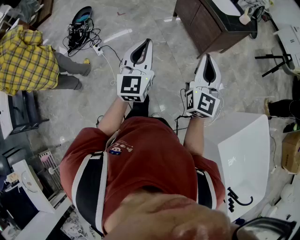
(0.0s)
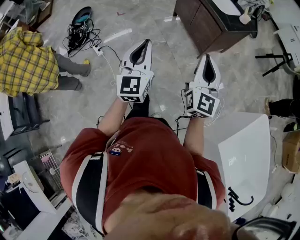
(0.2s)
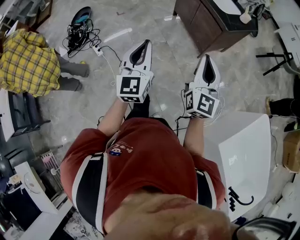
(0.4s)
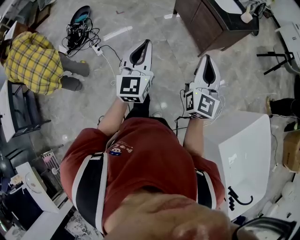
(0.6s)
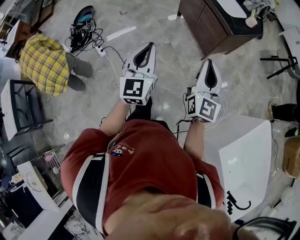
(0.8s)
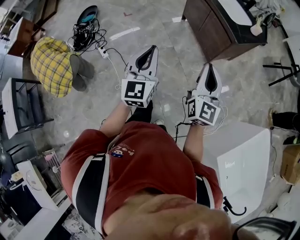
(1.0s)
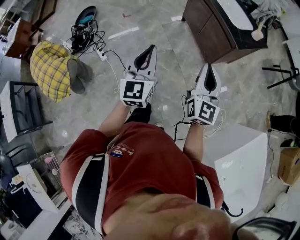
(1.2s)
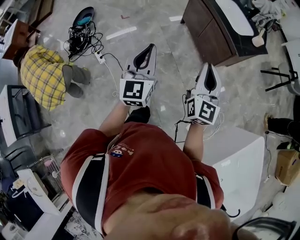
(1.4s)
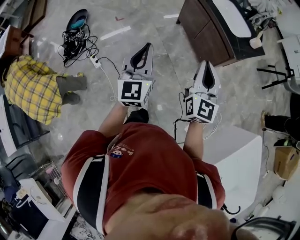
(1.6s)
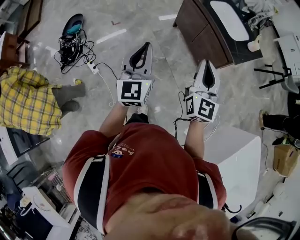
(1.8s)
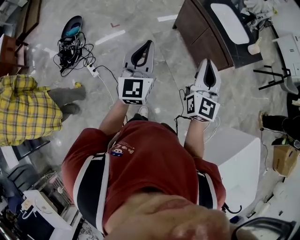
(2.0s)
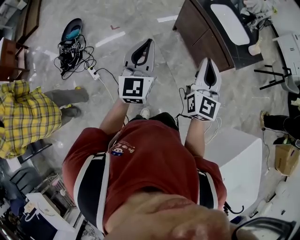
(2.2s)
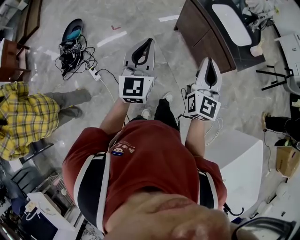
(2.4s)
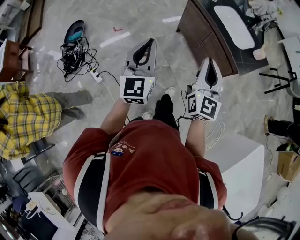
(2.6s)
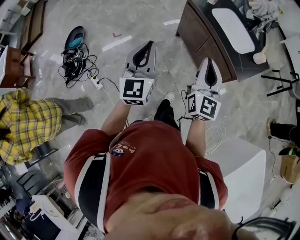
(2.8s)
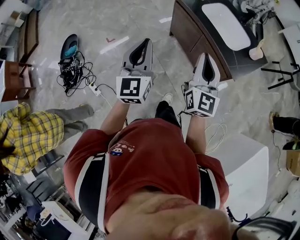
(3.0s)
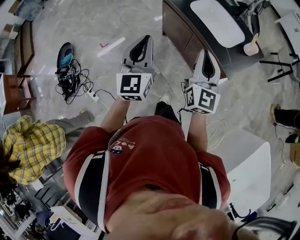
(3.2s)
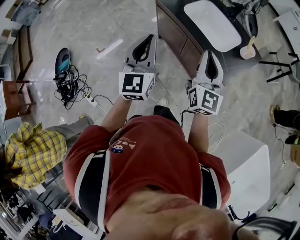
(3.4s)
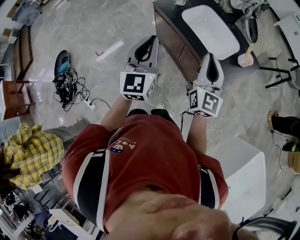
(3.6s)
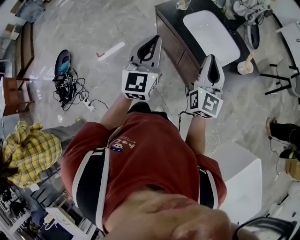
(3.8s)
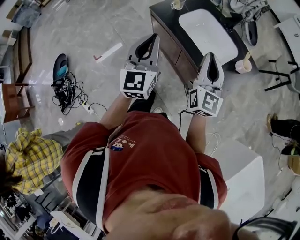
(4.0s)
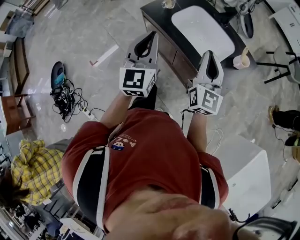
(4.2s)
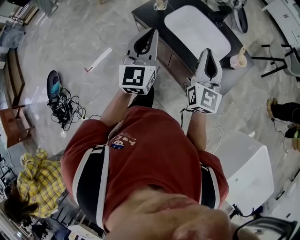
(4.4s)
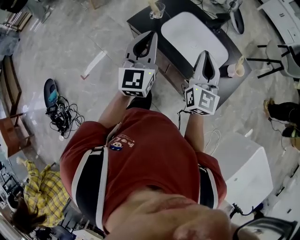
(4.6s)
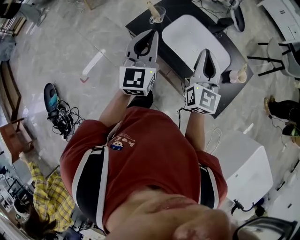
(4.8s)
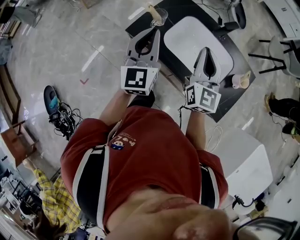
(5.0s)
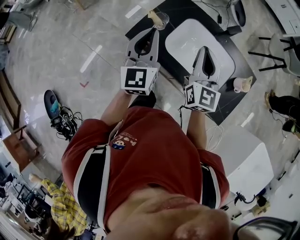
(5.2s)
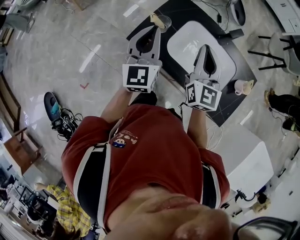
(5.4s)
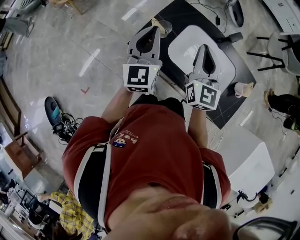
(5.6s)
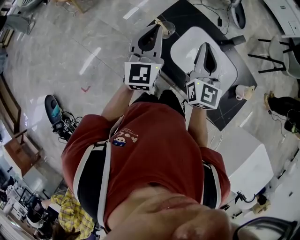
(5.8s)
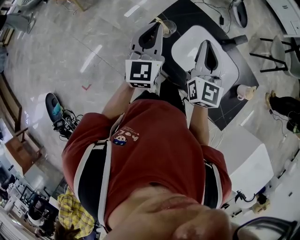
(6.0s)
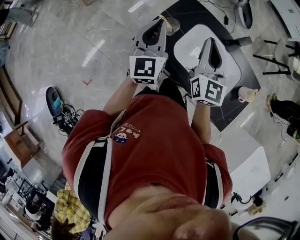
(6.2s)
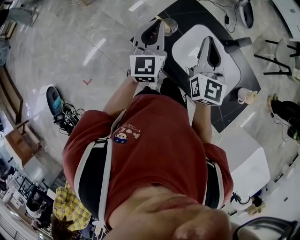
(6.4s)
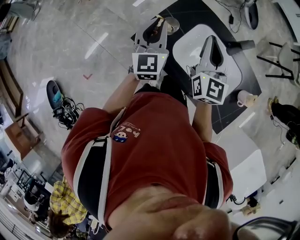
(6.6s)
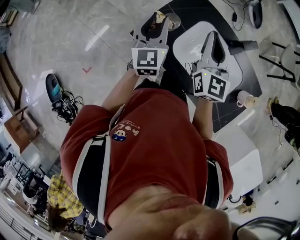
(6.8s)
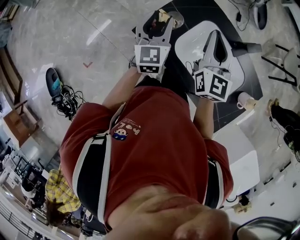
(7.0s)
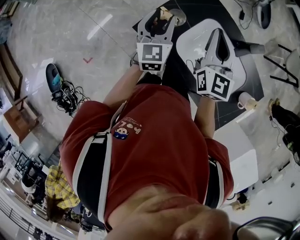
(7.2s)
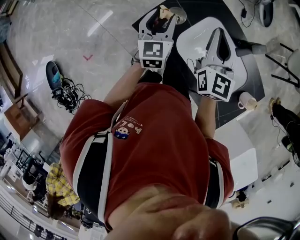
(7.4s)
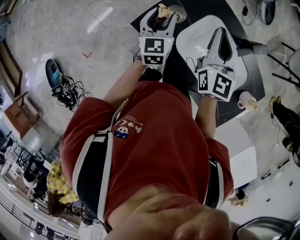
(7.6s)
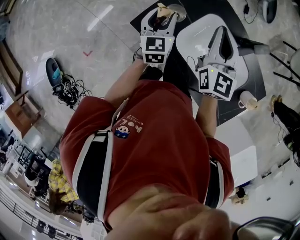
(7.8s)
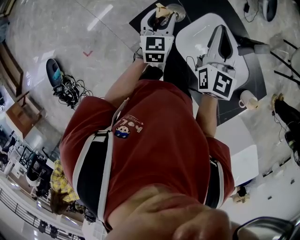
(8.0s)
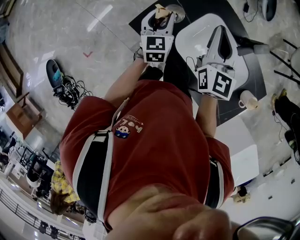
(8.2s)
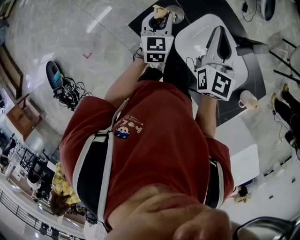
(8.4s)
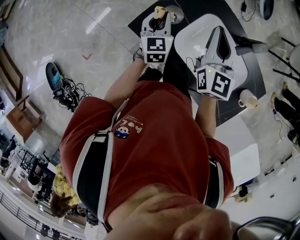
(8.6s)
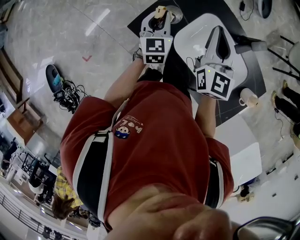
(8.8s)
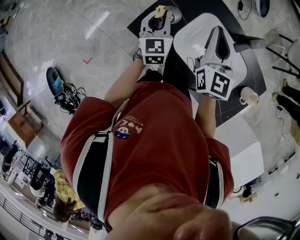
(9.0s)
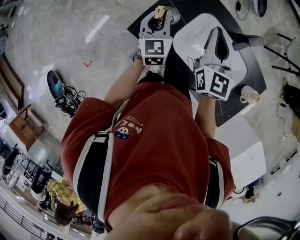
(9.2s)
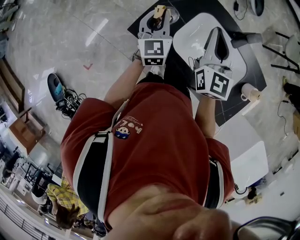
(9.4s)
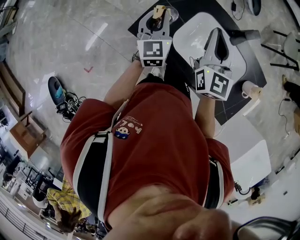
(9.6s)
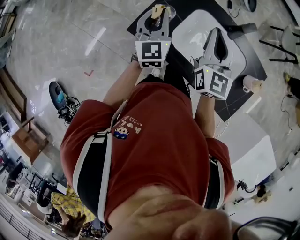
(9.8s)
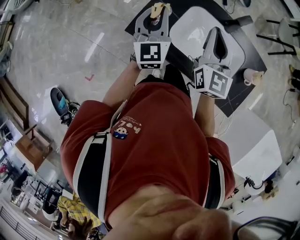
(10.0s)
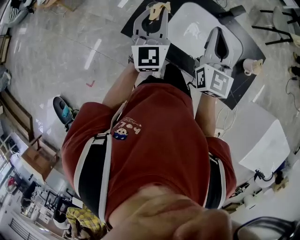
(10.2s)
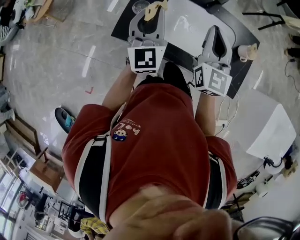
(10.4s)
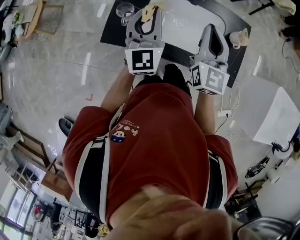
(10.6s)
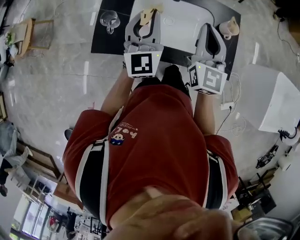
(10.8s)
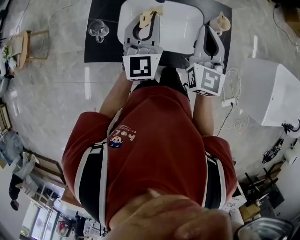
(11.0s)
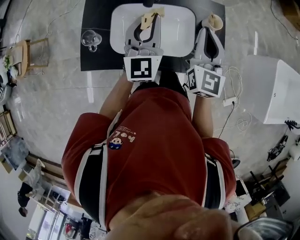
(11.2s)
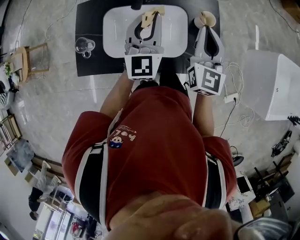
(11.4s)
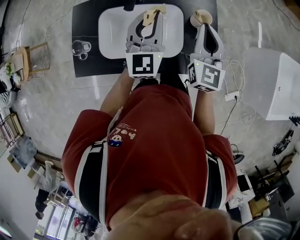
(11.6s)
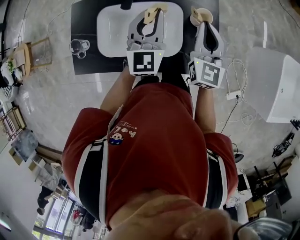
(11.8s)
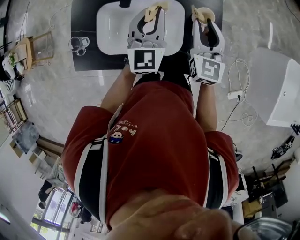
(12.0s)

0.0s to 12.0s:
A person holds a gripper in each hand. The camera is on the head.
0.0s to 1.6s: The grippers both shift forward by approximately 25 cm.
1.6s to 3.0s: The grippers both shift forward by roughly 25 cm.
3.0s to 4.4s: Both grippers move forward and to the right, approximately 30 cm.
4.4s to 6.0s: The left gripper is displaced forward by roughly 30 cm; the right gripper goes about 30 cm forward and to the left.
6.0s to 7.6s: The left gripper moves downward, about 15 cm, changes its angle by roughly 20 degrees, and opens its fingers. Meanwhile the right gripper shifts some 10 cm forward and downward.
7.6s to 9.0s: The left gripper closes its fingers.
9.0s to 10.4s: The left gripper is displaced upward, backward and to the right by some 20 cm, and turns by some 30 degrees. Meanwhile the right gripper shifts approximately 15 cm backward and to the right, and changes its angle by some 20 degrees.
10.4s to 12.0s: The right gripper shifts about 30 cm to the right, and opens its fingers. Meanwhile the left gripper is displaced to the right and forward by about 35 cm, and rotates some 30 degrees.

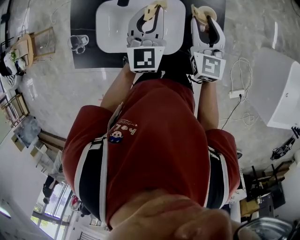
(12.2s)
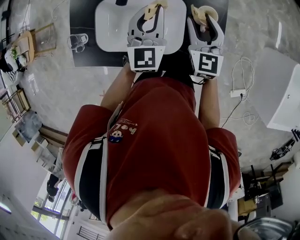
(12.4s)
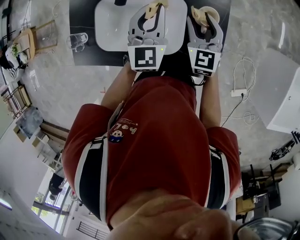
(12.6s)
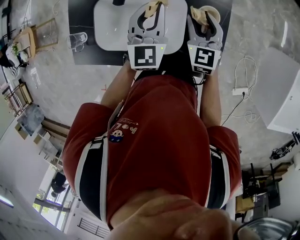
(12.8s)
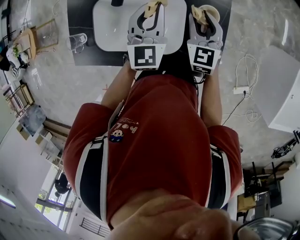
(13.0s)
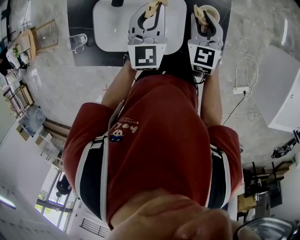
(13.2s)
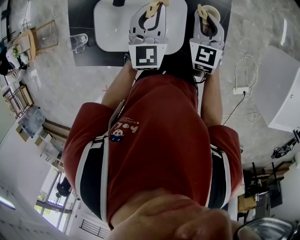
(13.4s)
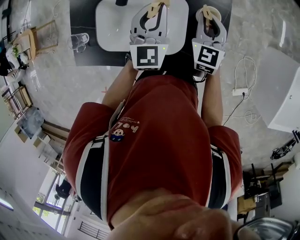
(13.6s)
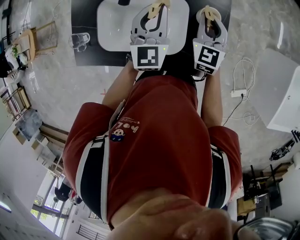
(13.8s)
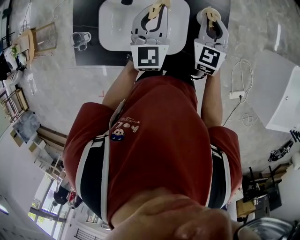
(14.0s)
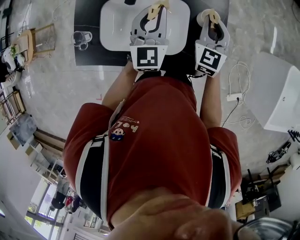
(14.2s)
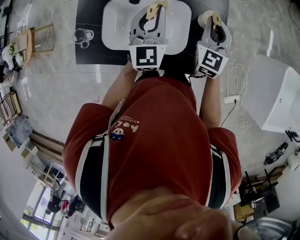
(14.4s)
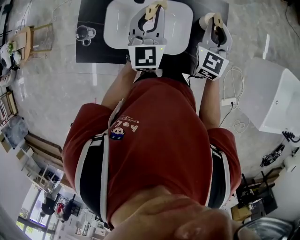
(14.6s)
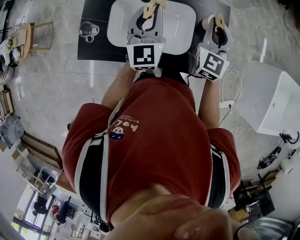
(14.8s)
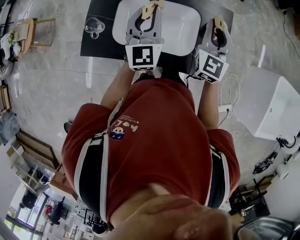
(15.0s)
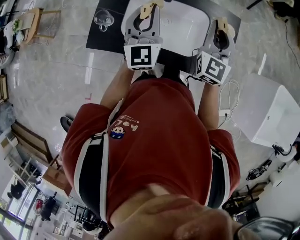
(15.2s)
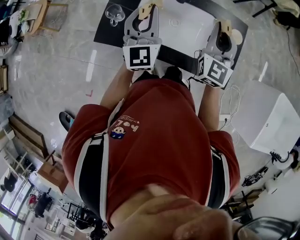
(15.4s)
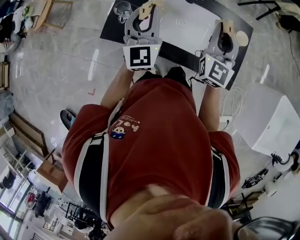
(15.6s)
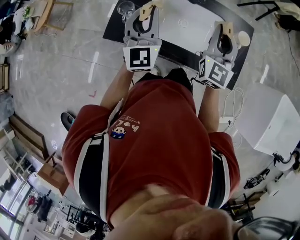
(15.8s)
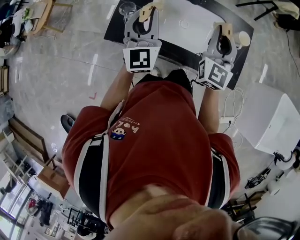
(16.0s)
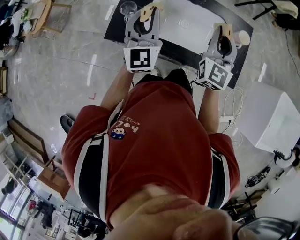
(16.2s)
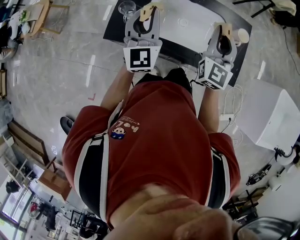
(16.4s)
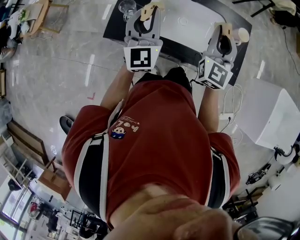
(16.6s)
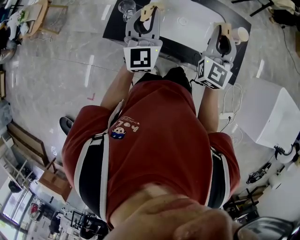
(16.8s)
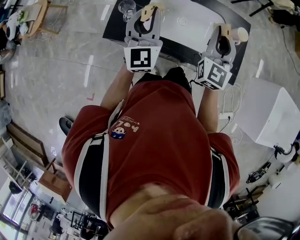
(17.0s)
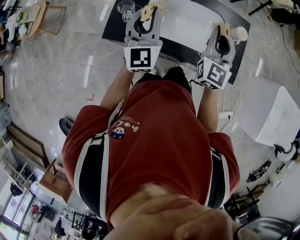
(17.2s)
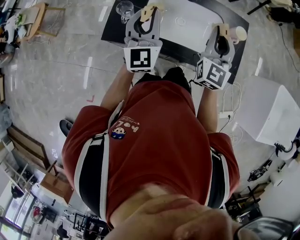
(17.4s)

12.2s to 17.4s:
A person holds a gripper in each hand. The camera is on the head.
12.2s to 14.0s: The right gripper closes.
14.0s to 15.6s: The right gripper moves to the left, upward and backward, some 25 cm, and swivels some 20 degrees, while the left gripper goes about 25 cm to the left and backward, and rotates about 20 degrees.
15.6s to 17.4s: The right gripper changes place by about 5 cm.

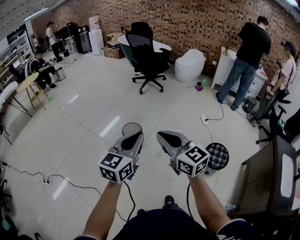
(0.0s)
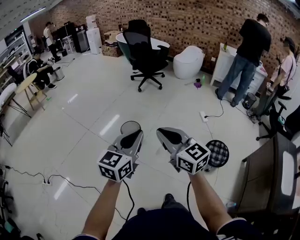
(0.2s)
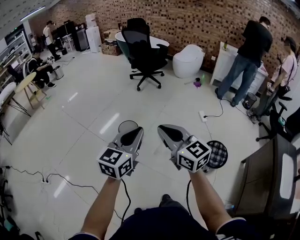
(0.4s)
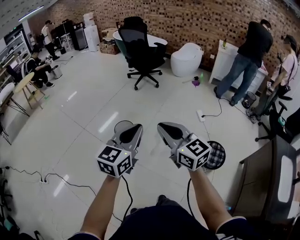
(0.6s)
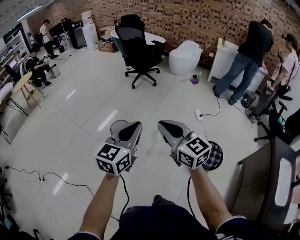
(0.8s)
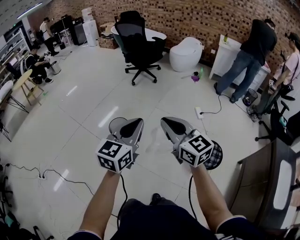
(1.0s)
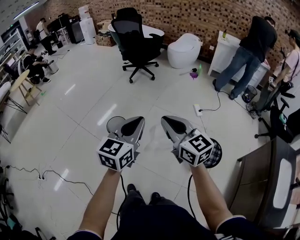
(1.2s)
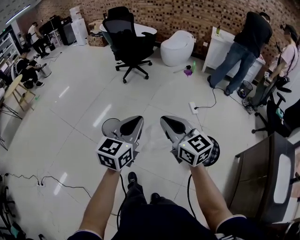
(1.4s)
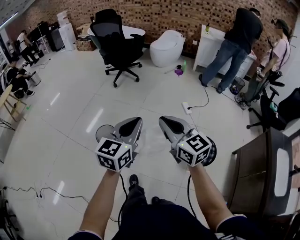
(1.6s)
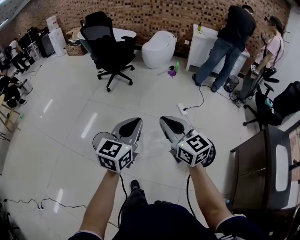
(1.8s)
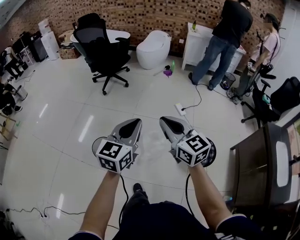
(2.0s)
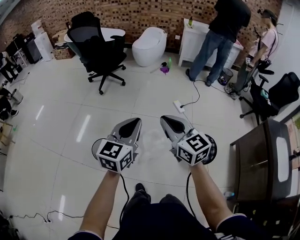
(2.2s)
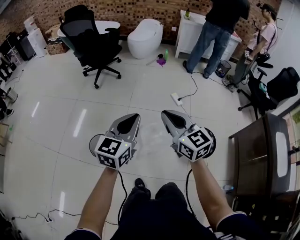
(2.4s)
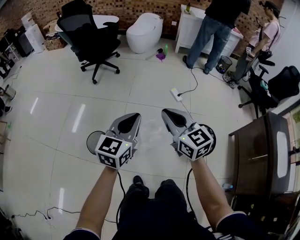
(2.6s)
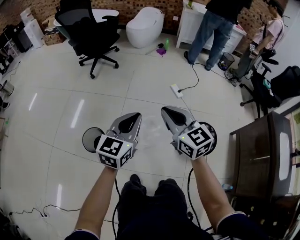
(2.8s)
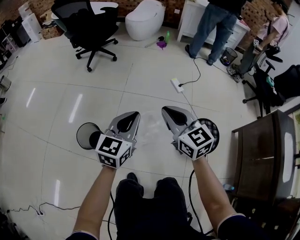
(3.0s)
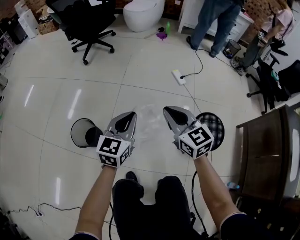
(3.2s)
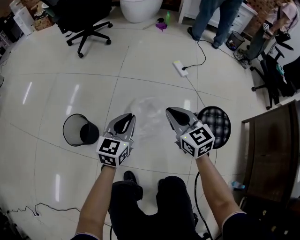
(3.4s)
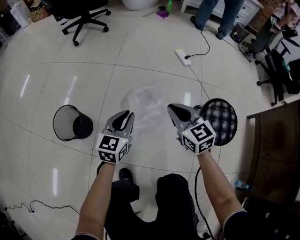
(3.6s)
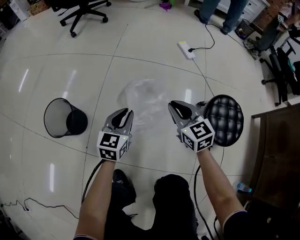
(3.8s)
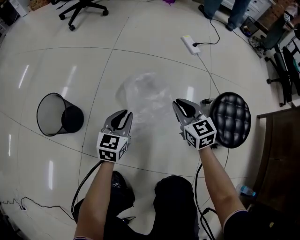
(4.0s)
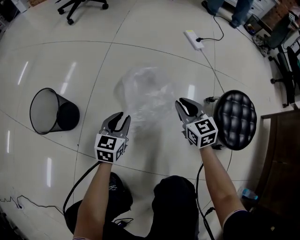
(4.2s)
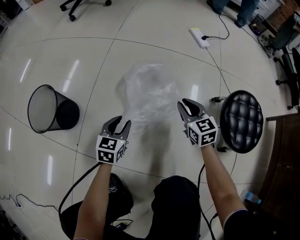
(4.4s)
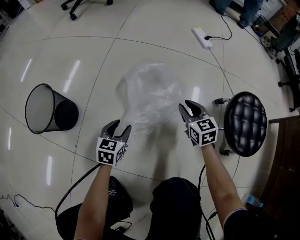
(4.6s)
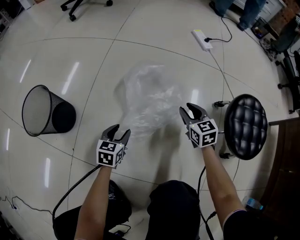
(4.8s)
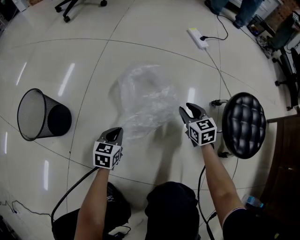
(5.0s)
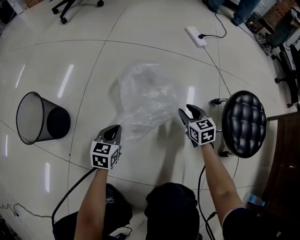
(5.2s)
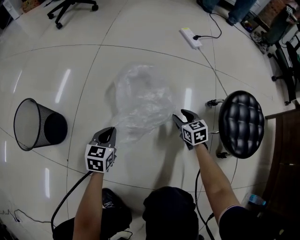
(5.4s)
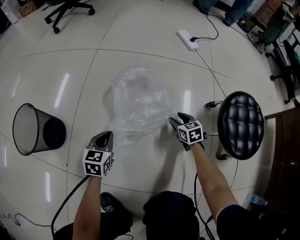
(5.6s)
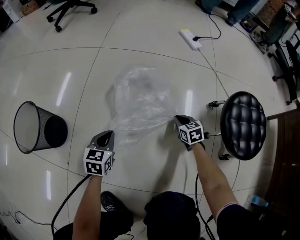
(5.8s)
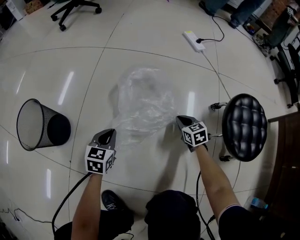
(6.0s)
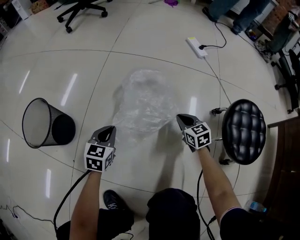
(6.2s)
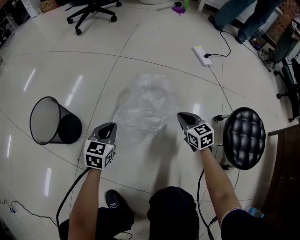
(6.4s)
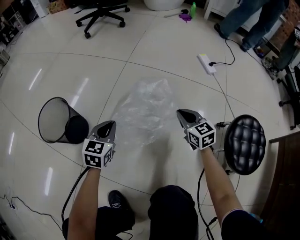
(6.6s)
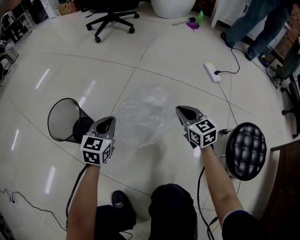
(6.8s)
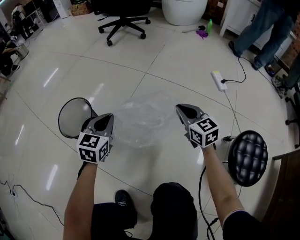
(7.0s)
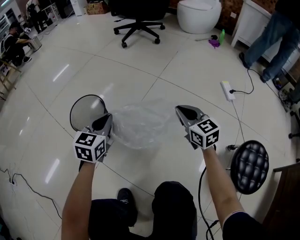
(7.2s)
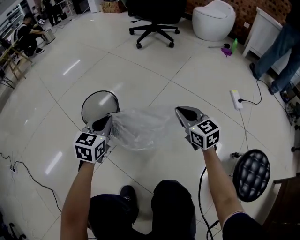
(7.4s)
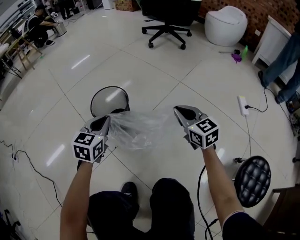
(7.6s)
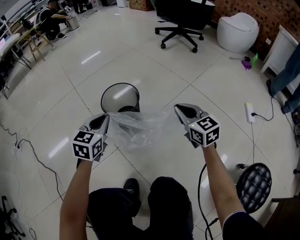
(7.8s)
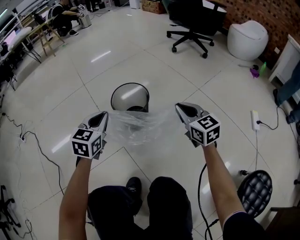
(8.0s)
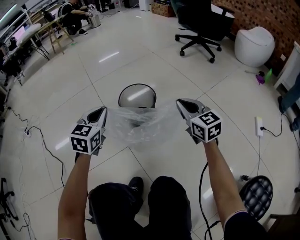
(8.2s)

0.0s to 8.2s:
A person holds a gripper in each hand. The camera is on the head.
0.0s to 1.6s: Both grippers travel together to the right and forward, roughly 30 cm.
1.6s to 3.2s: Both grippers move downward and forward, about 35 cm.
3.2s to 5.0s: The grippers both shift downward by some 60 cm. The left gripper turns by roughly 30 degrees, and opens, then closes once more. Meanwhile the right gripper changes its angle by some 20 degrees, and opens its fingers.
5.0s to 6.6s: The right gripper shifts about 10 cm upward and to the left, and closes. Meanwhile the left gripper shifts roughly 20 cm upward, forward and to the left.
6.6s to 8.2s: The right gripper changes place by approximately 40 cm, and rotates some 40 degrees; the left gripper moves some 40 cm, and rotates some 40 degrees.
